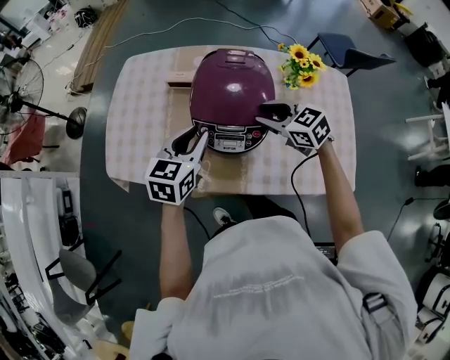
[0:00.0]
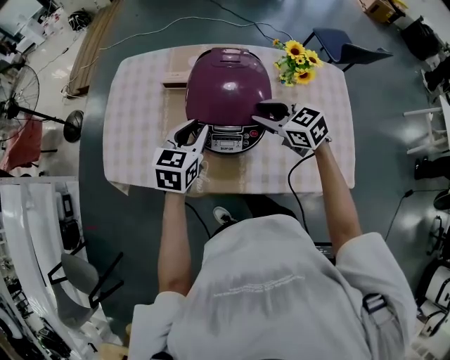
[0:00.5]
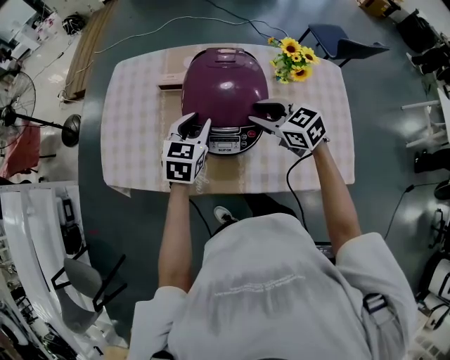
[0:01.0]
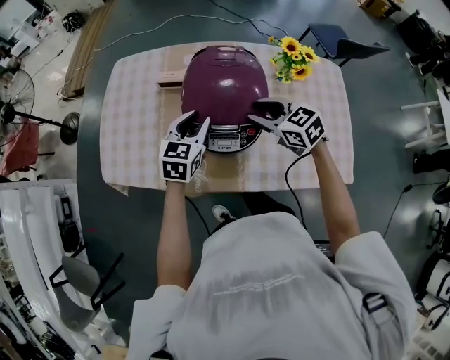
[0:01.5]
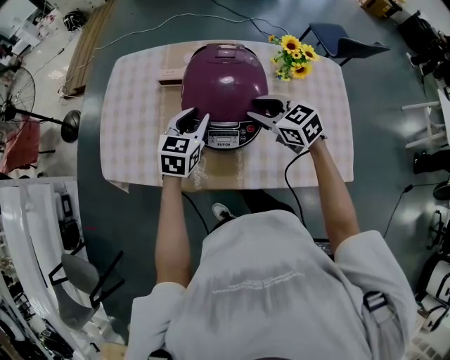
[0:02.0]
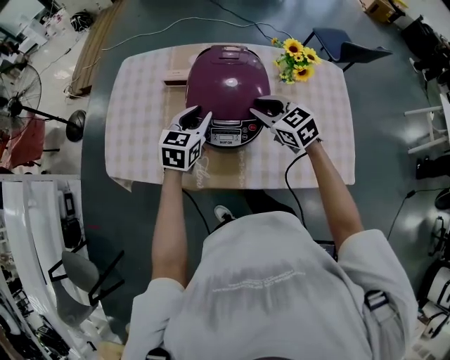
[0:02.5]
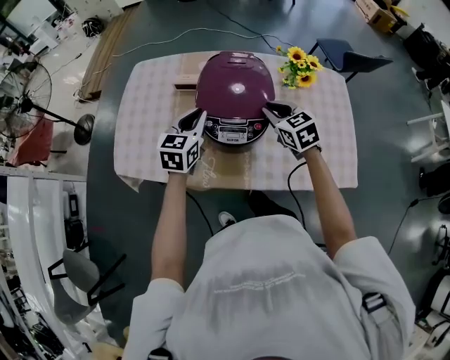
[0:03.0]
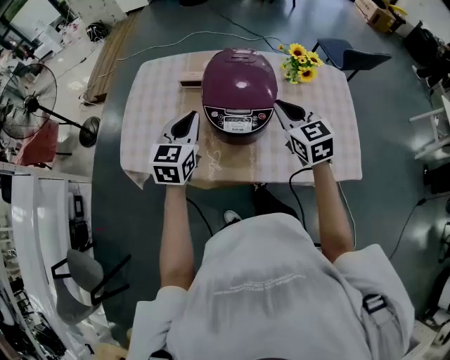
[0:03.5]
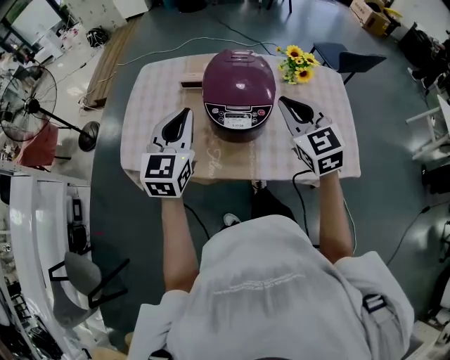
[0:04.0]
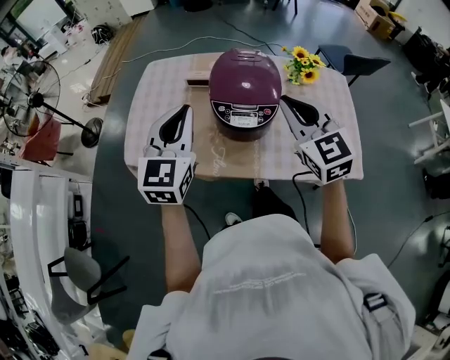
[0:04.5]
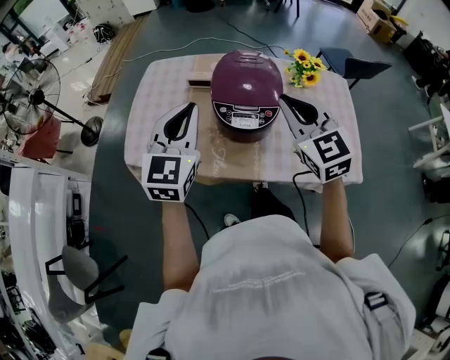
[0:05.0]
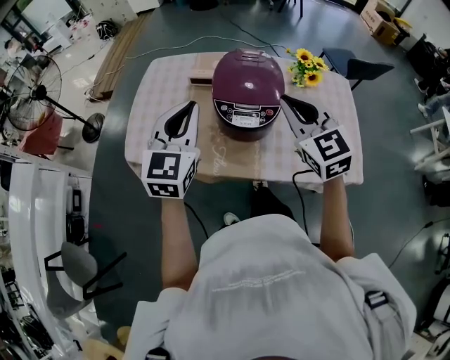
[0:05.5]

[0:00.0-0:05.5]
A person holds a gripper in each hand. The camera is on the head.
0:00.0 to 0:02.0: The left gripper changes place by some 5 cm.
0:02.0 to 0:03.5: The right gripper is displaced upward and backward by some 10 cm, changes its angle by about 30 degrees, and closes up; the left gripper travels upward, to the left and backward by some 10 cm, and closes its fingers.
0:03.5 to 0:05.5: The two grippers go approximately 10 cm upward and backward.

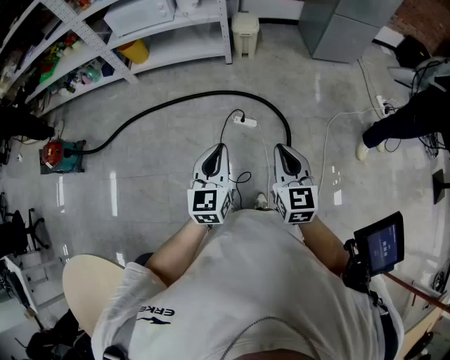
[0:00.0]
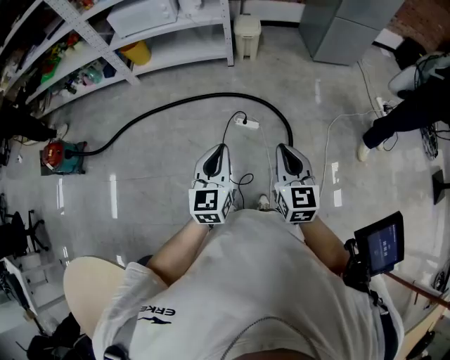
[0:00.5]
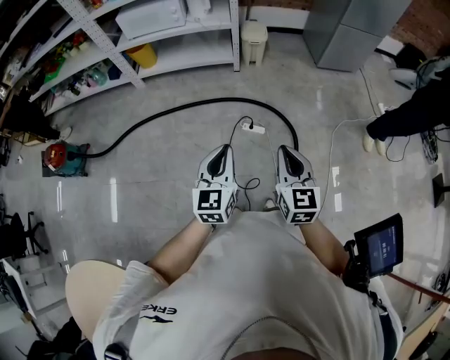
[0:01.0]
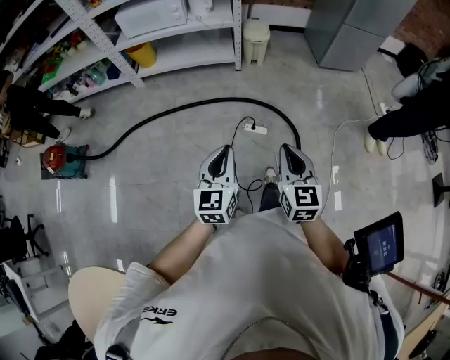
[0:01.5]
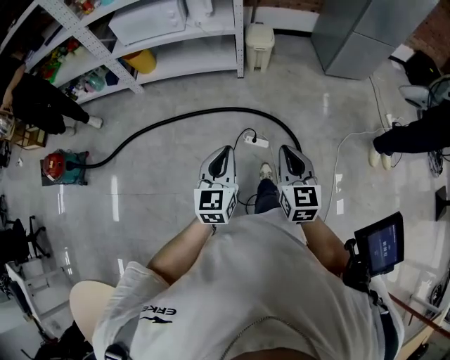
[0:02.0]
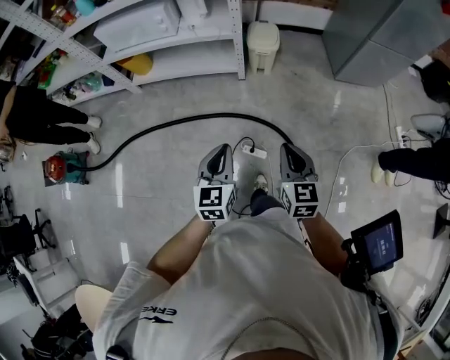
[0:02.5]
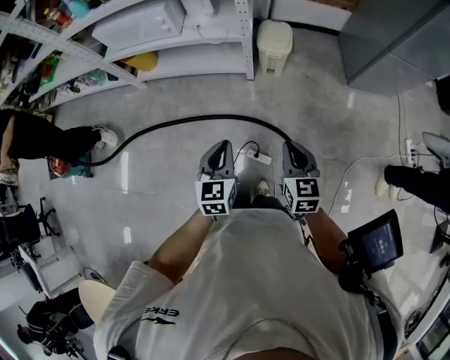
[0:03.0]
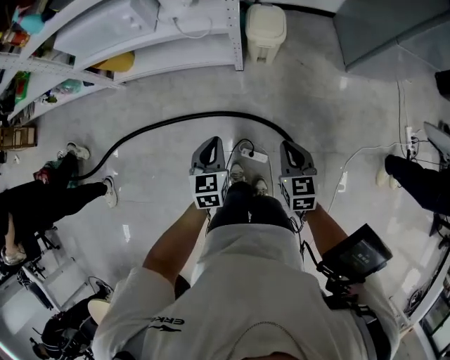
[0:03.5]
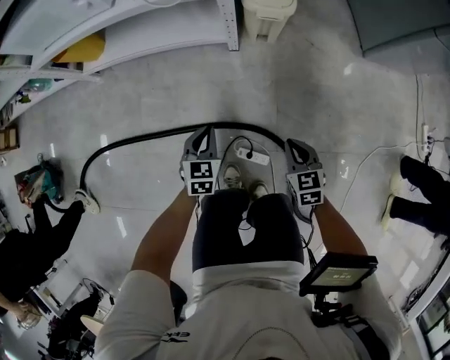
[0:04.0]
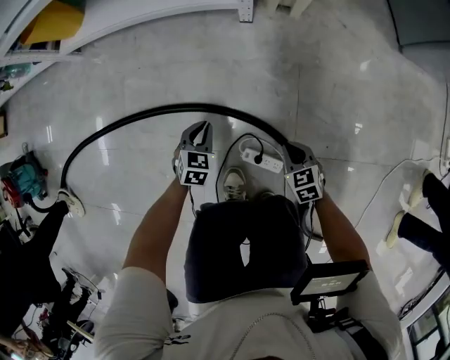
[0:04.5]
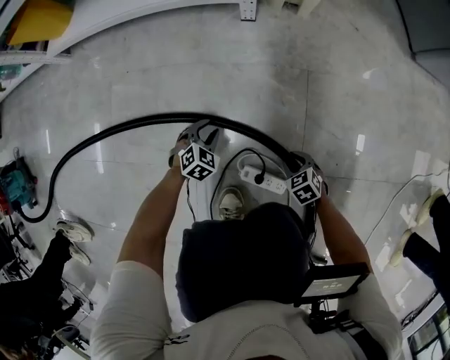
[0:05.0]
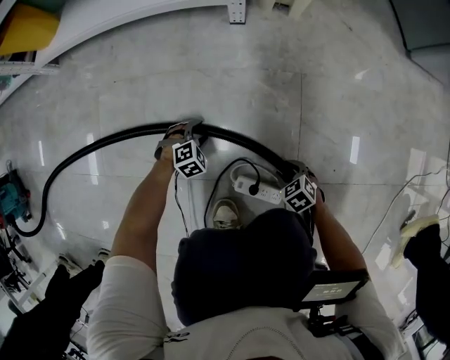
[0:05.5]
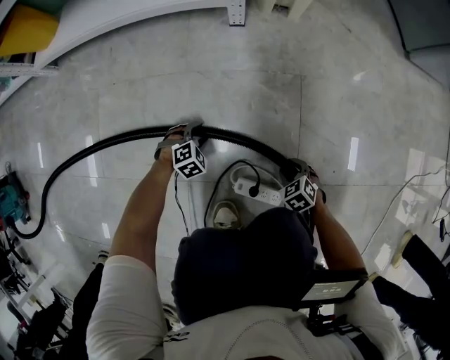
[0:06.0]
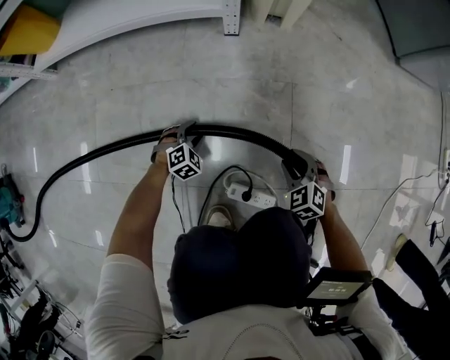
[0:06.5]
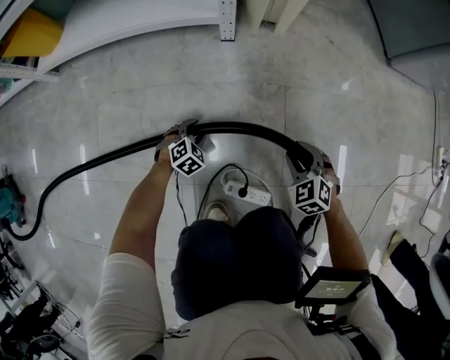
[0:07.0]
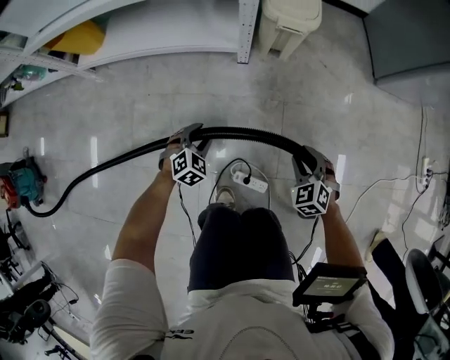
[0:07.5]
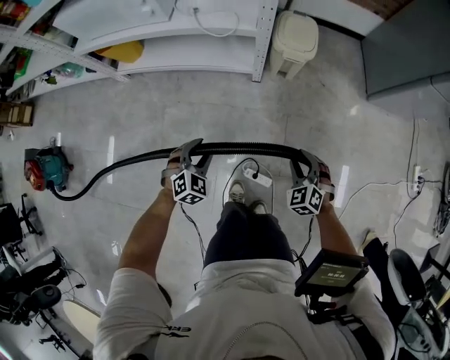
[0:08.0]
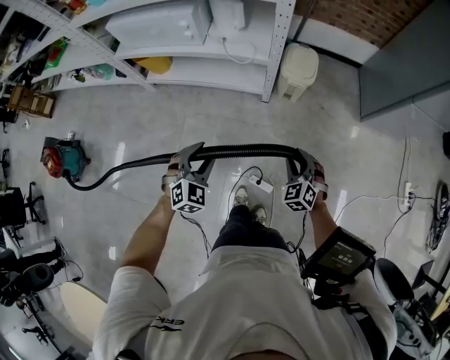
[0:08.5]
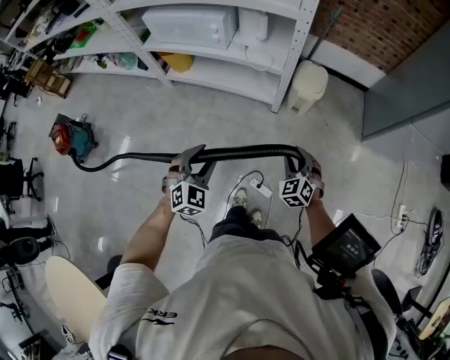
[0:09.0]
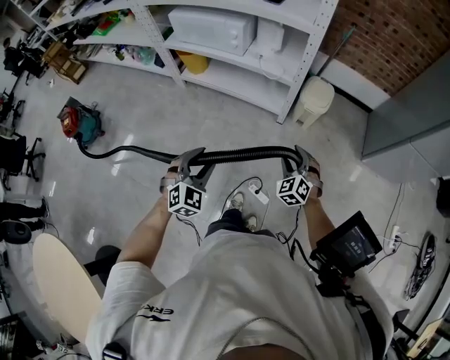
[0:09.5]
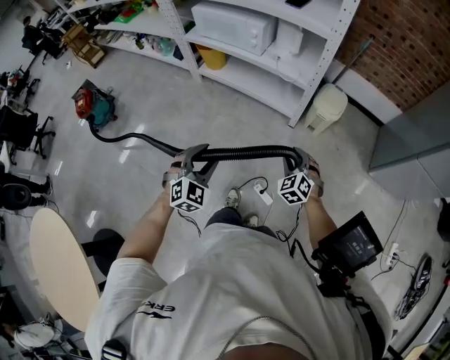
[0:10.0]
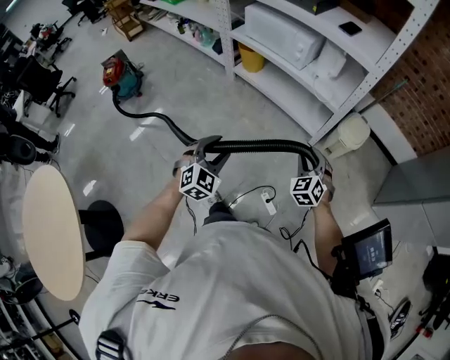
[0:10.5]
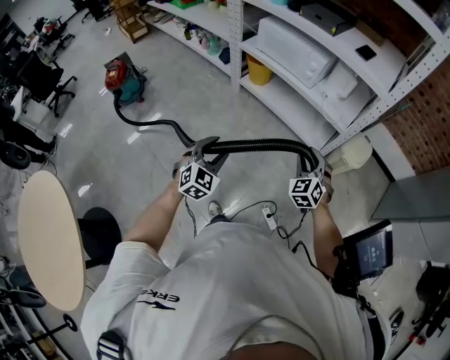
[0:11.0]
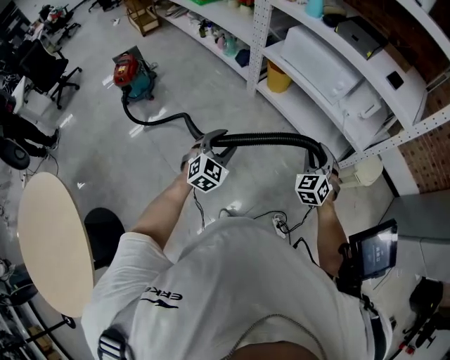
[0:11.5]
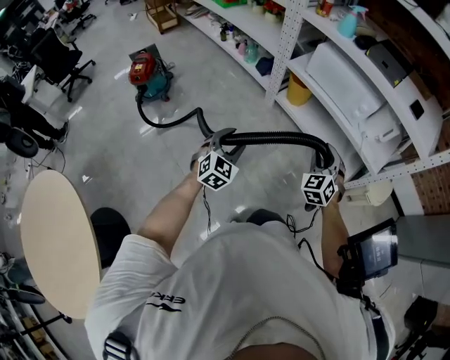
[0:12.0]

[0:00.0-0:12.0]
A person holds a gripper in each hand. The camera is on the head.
0:00.0 to 0:02.0: The grippers both shift forward by some 15 cm.
0:02.0 to 0:04.0: Both grippers are carried forward, approximately 40 cm. The grippers both shift downward by some 40 cm. The right gripper swivels about 30 degrees. The left gripper swivels some 30 degrees.
0:04.0 to 0:06.0: Both grippers travel together downward, roughly 50 cm. The left gripper rotates around the line of its fingers by roughly 50 degrees, clockwise from behind, and opens up, while the right gripper changes its angle by some 30 degrees, and opens its fingers.
0:06.0 to 0:08.0: Both grippers move upward, some 60 cm. The right gripper rotates some 30 degrees; the left gripper changes its angle by roughly 30 degrees.
0:08.0 to 0:10.0: The right gripper moves upward and to the left, some 25 cm, while the left gripper is displaced upward and backward by roughly 35 cm, and turns by about 30 degrees.
0:10.0 to 0:12.0: The grippers both shift to the left and forward by about 40 cm. The left gripper swivels roughly 30 degrees.

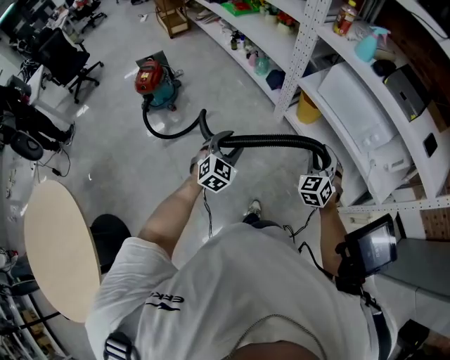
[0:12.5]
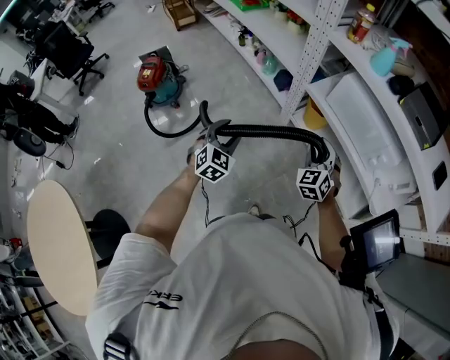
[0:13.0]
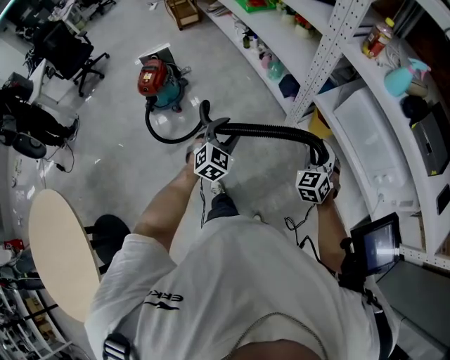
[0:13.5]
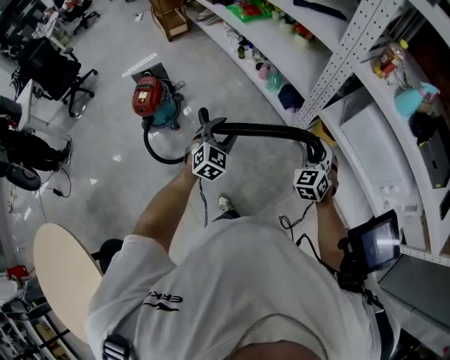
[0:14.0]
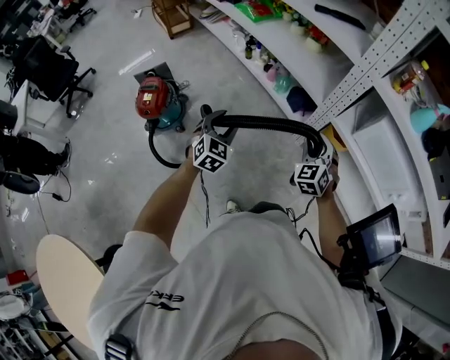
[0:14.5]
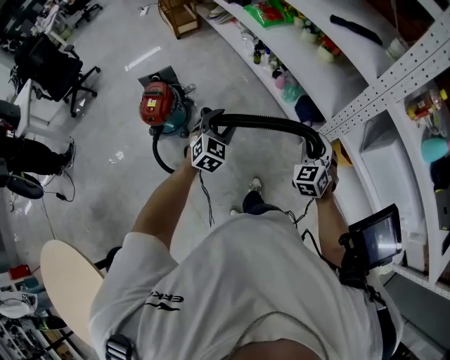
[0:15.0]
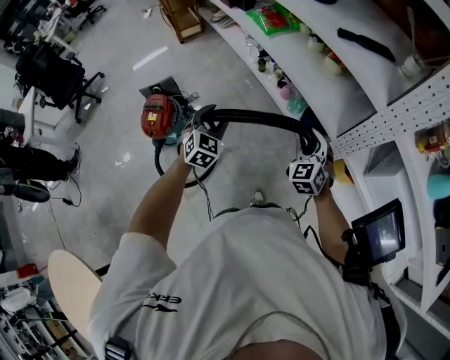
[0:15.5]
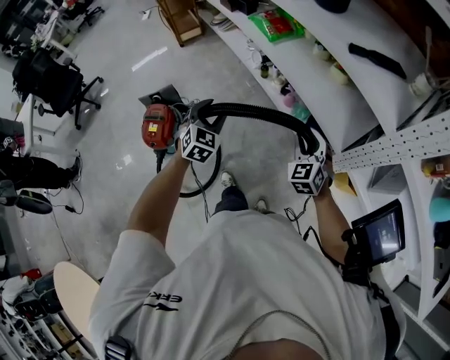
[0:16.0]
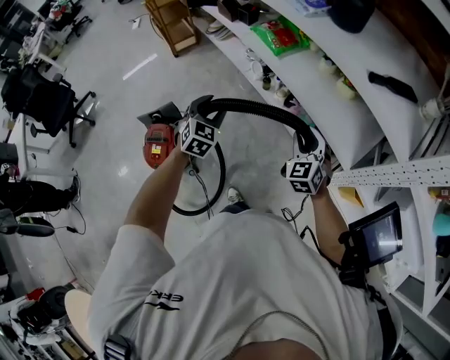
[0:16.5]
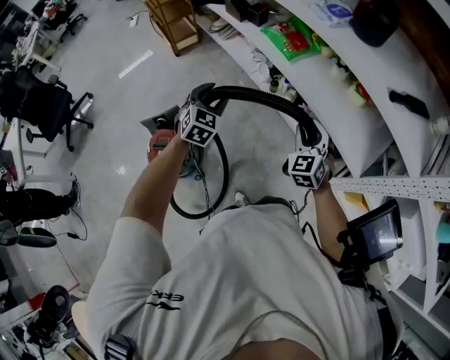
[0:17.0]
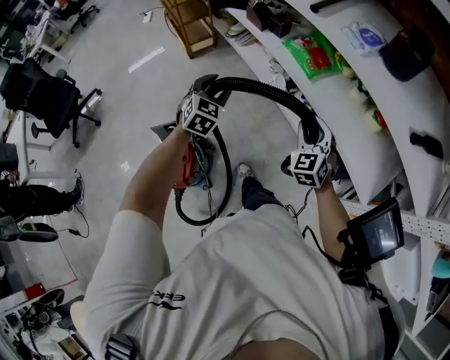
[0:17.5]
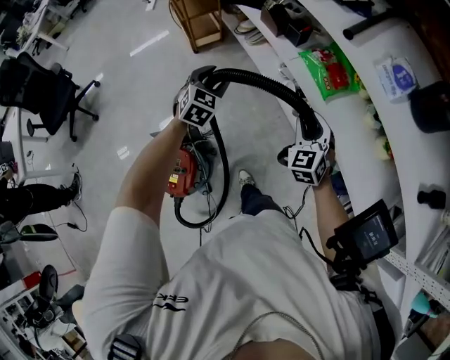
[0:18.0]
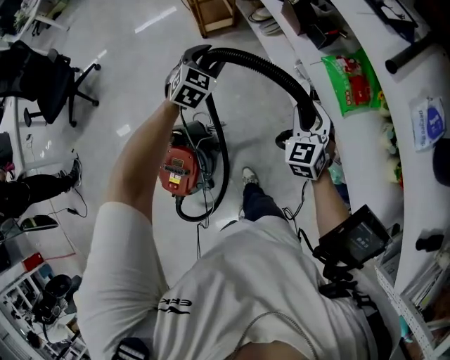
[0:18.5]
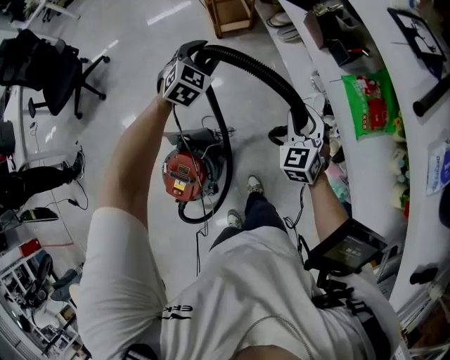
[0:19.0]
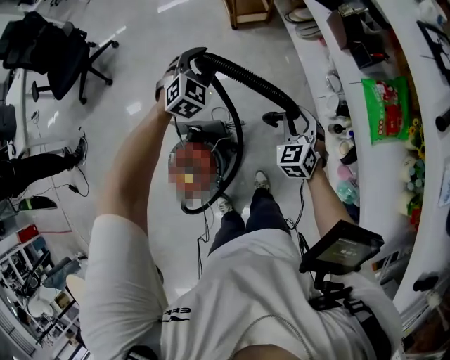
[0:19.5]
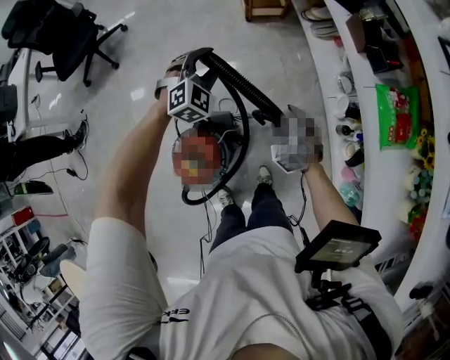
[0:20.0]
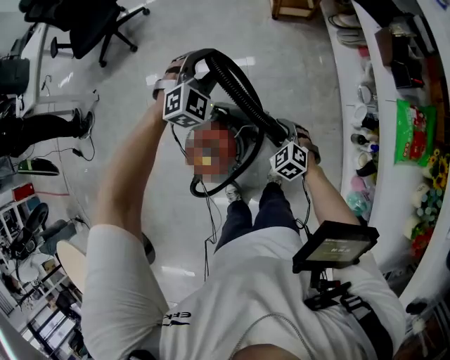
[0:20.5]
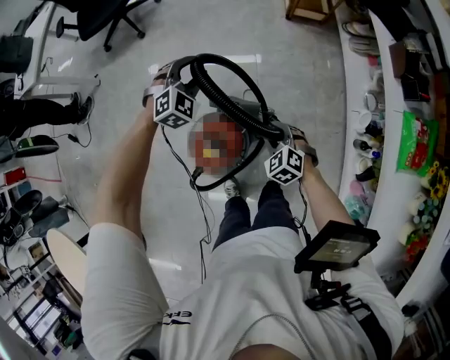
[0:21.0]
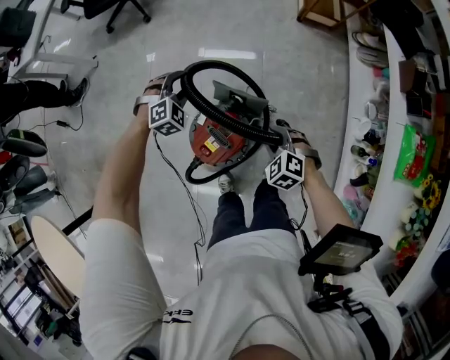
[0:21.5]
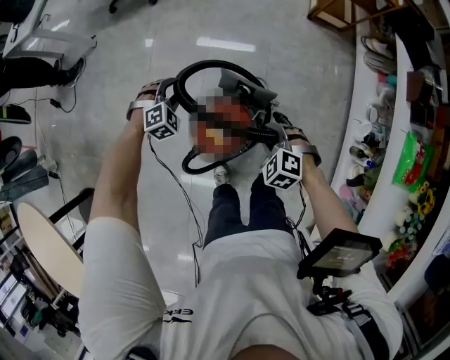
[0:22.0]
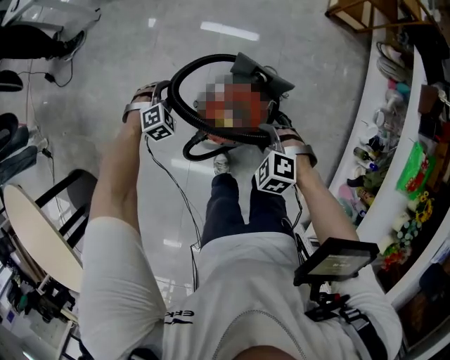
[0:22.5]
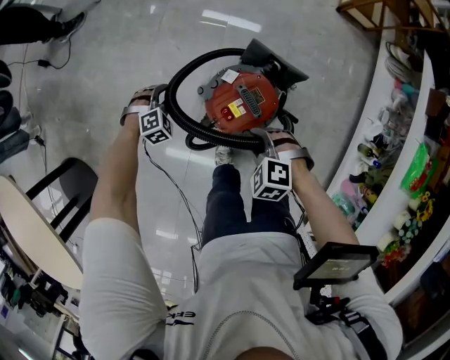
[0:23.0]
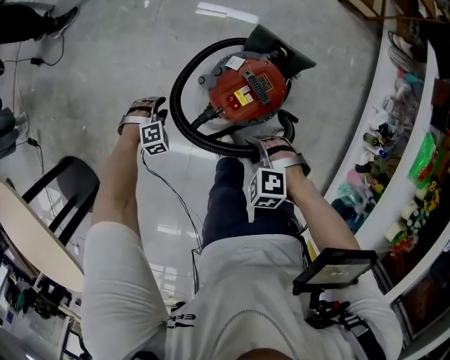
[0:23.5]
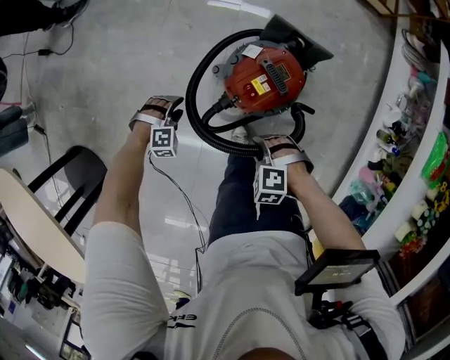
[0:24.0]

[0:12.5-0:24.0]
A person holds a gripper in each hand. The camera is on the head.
0:12.5 to 0:14.5: The left gripper heads forward and to the left, covering roughly 40 cm. Meanwhile the right gripper heads to the left and forward, covering about 40 cm.
0:14.5 to 0:16.5: The pair of grippers is taken forward and to the left, some 40 cm.
0:16.5 to 0:18.5: The two grippers travel together, forward and to the left, approximately 50 cm.
0:18.5 to 0:20.0: The left gripper travels to the left by about 15 cm, and changes its angle by about 20 degrees. Meanwhile the right gripper heads to the left and downward, covering some 25 cm, turns by roughly 40 degrees, and opens.
0:20.0 to 0:22.0: The right gripper moves some 30 cm, turns by about 50 degrees, and closes up; the left gripper moves approximately 50 cm, and rotates some 30 degrees.
0:22.0 to 0:24.0: The right gripper ends up roughly 30 cm from where it was, and turns by roughly 30 degrees. The left gripper changes place by about 40 cm.
